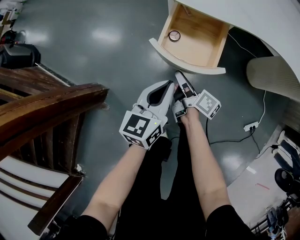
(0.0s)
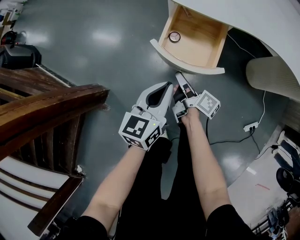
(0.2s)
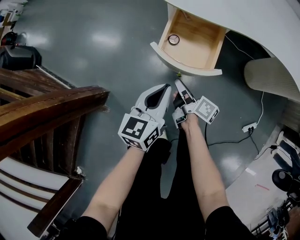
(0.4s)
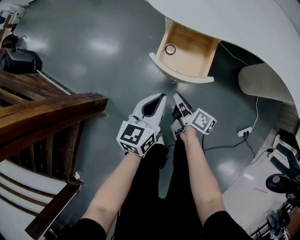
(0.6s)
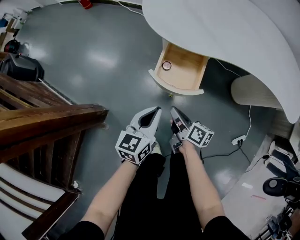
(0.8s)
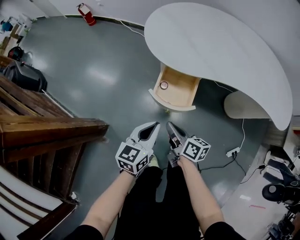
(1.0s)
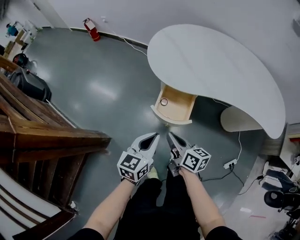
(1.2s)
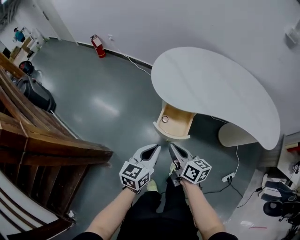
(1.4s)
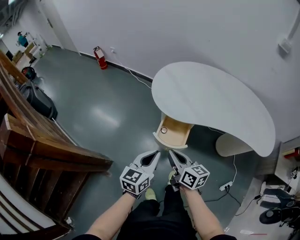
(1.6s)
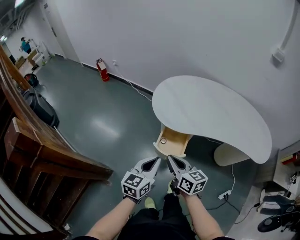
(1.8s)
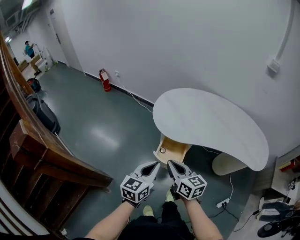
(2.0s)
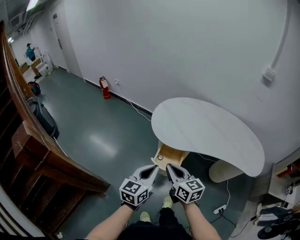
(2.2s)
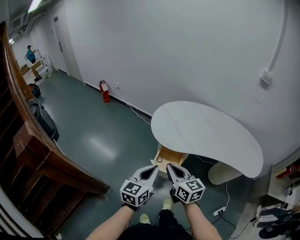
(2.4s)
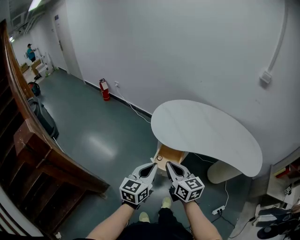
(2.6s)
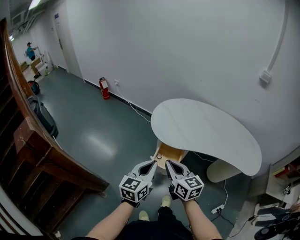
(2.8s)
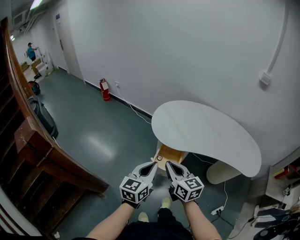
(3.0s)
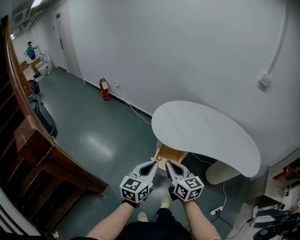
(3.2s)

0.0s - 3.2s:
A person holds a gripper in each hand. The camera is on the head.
0.0s - 1.6s: Both grippers move upward, approximately 30 cm. The right gripper rotates around the line of its fingers by about 40 degrees, counterclockwise from behind, and closes.
1.6s - 3.2s: Both grippers travel together upward, approximately 15 cm. The right gripper changes its angle by roughly 20 degrees.

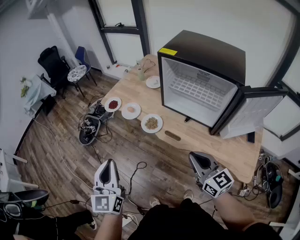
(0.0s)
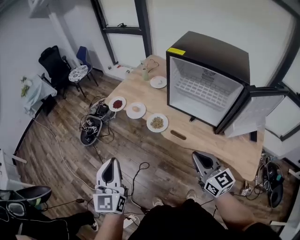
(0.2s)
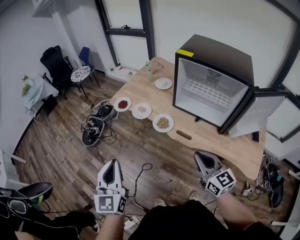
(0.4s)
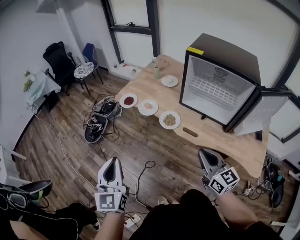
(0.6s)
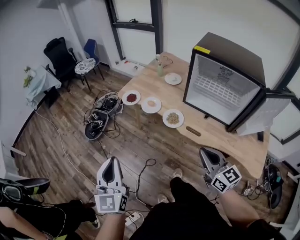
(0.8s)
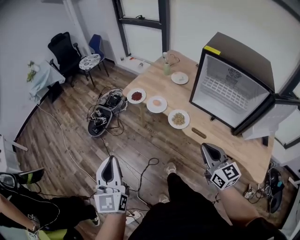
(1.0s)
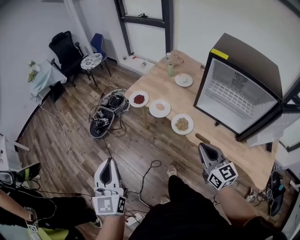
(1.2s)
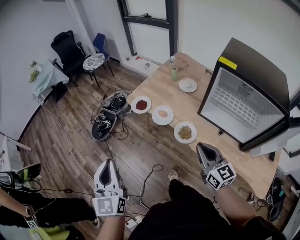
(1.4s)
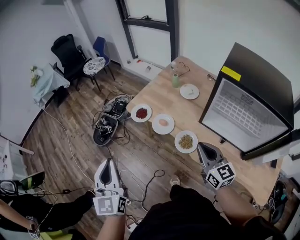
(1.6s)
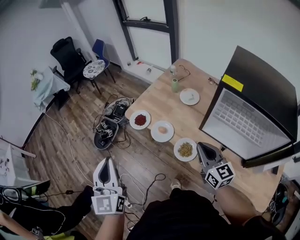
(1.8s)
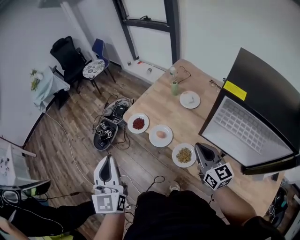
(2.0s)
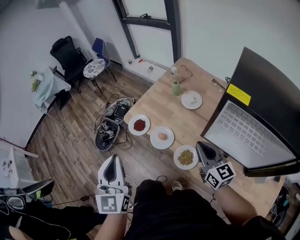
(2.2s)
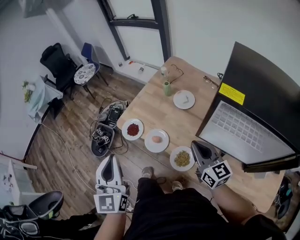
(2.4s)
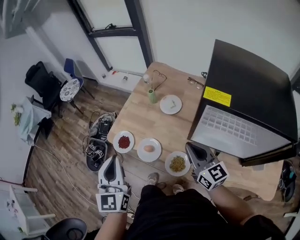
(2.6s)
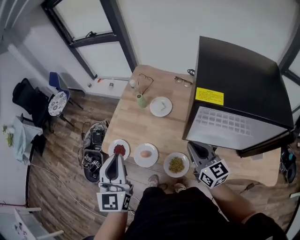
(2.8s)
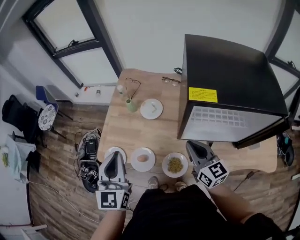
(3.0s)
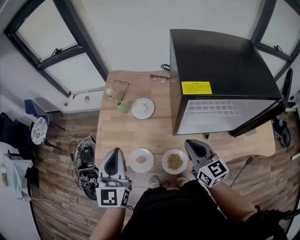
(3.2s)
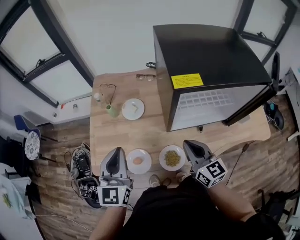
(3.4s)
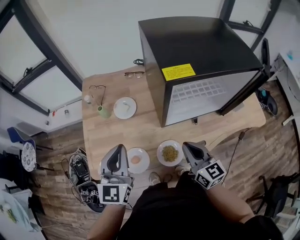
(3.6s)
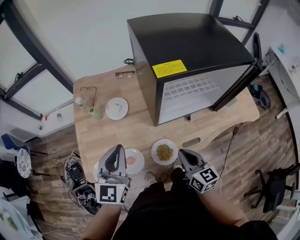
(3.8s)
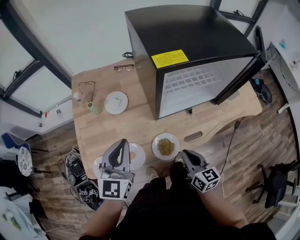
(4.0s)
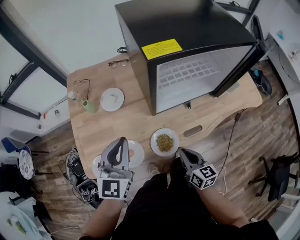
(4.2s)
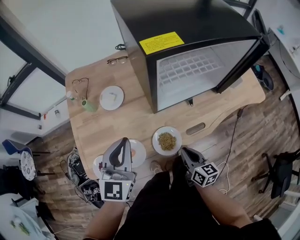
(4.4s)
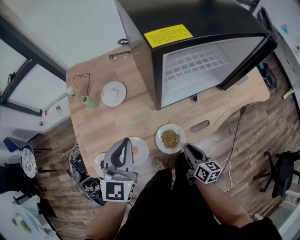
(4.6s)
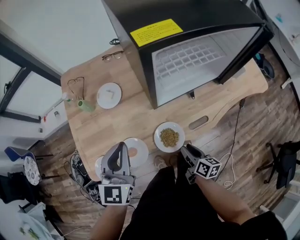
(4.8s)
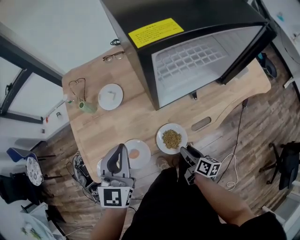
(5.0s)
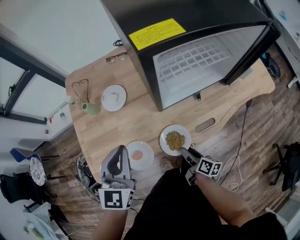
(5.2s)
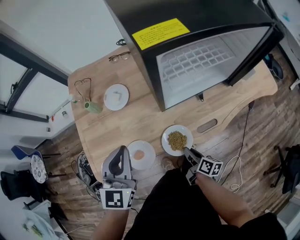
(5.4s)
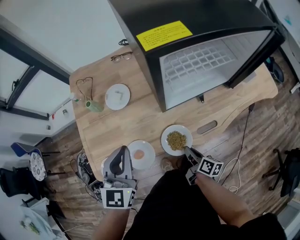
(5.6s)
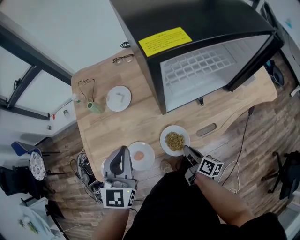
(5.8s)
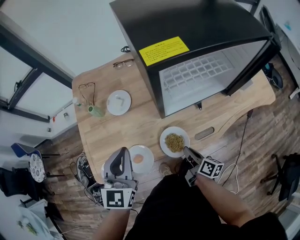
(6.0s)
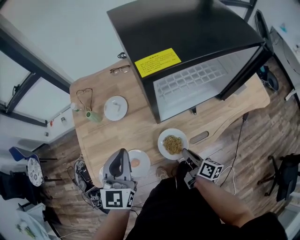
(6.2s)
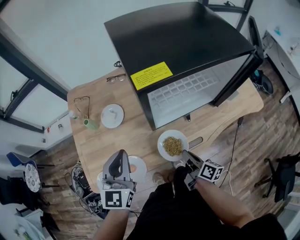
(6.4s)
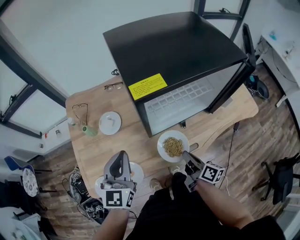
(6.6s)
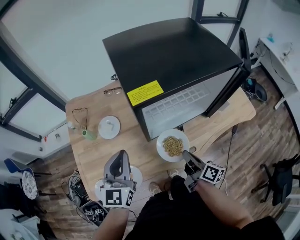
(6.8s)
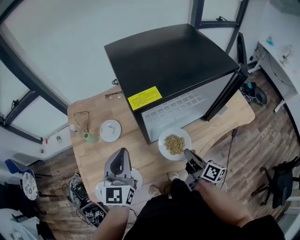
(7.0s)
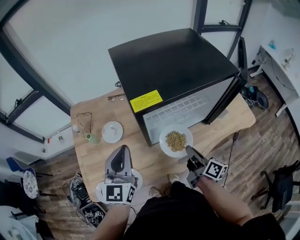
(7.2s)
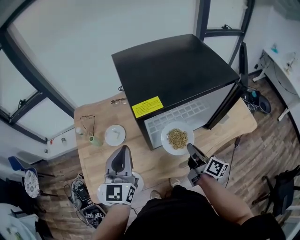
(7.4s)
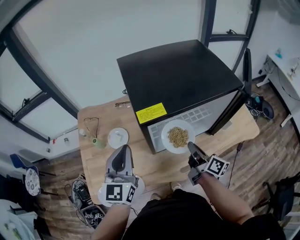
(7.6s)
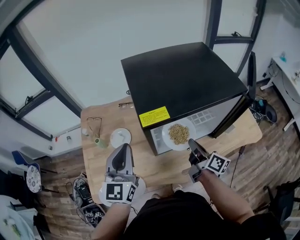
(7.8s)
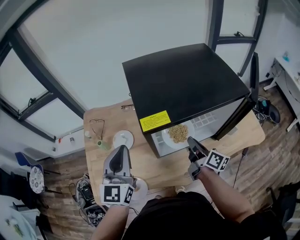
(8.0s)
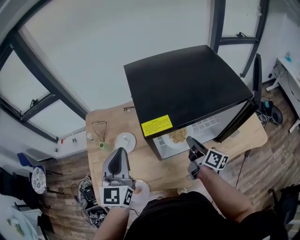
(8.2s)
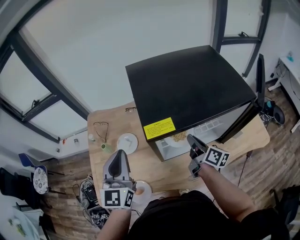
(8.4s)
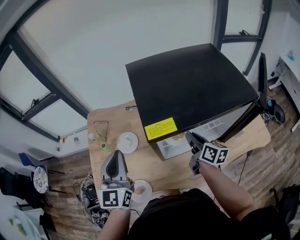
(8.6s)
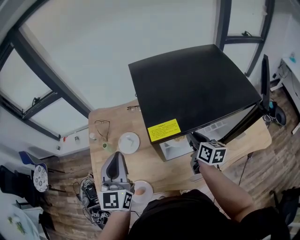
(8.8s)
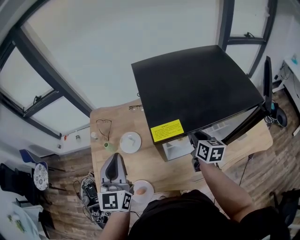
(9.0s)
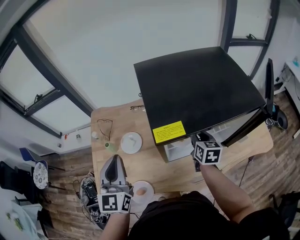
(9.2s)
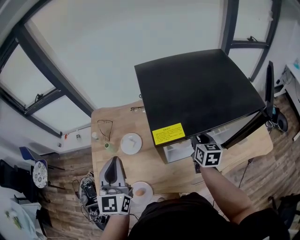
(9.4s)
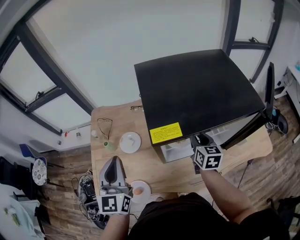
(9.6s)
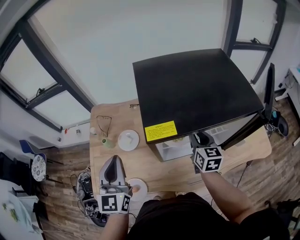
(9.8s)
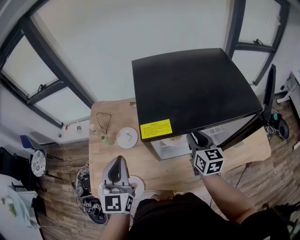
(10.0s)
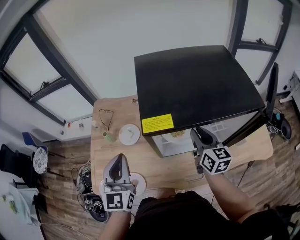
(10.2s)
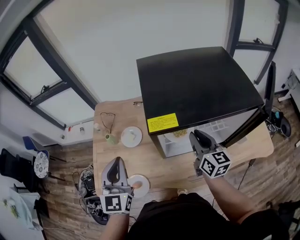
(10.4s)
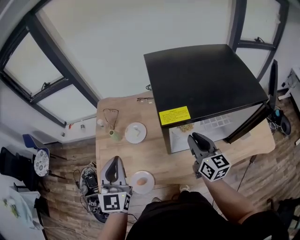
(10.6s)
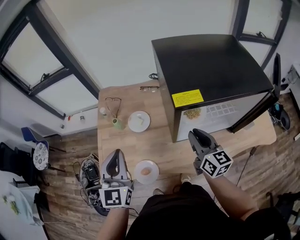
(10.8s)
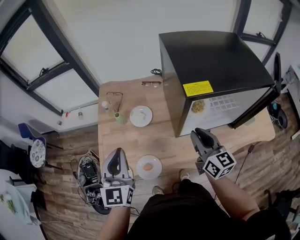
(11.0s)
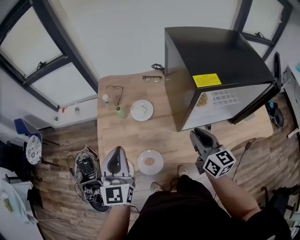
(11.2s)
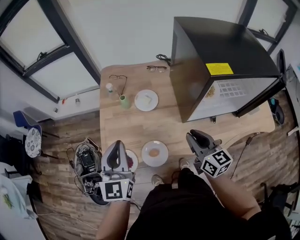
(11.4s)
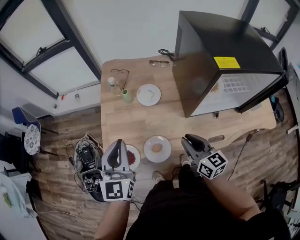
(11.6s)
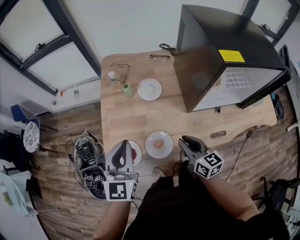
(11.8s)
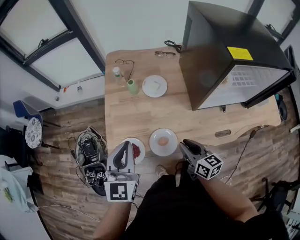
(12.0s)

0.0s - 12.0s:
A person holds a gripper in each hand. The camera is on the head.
0.0s - 1.6s: Both grippers travel together forward and to the left, about 25 cm.
1.6s - 3.0s: The right gripper ends up approximately 15 cm from where it was, and swivels approximately 30 degrees. Meanwhile the left gripper moves approximately 35 cm, and swivels roughly 40 degrees.
3.0s - 4.4s: The right gripper moves downward, some 20 cm, and swivels about 40 degrees, while the left gripper ends up some 15 cm from where it was, and rotates some 40 degrees.
4.4s - 6.0s: The right gripper changes its angle by approximately 30 degrees, and opens, then closes once more.
6.0s - 7.6s: The left gripper is displaced upward, forward and to the right by roughly 15 cm. The right gripper shifts roughly 25 cm upward, forward and to the right, and swivels approximately 20 degrees.
7.6s - 9.0s: The left gripper travels to the left by some 5 cm, while the right gripper goes roughly 15 cm forward, and turns by roughly 40 degrees.
9.0s - 10.4s: The right gripper moves upward, about 5 cm, and swivels approximately 20 degrees. The left gripper heads backward, covering approximately 5 cm.
10.4s - 12.0s: The right gripper heads to the left, downward and backward, covering approximately 35 cm, and rotates approximately 20 degrees. Meanwhile the left gripper heads to the left, downward and backward, covering some 20 cm.

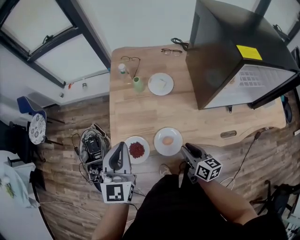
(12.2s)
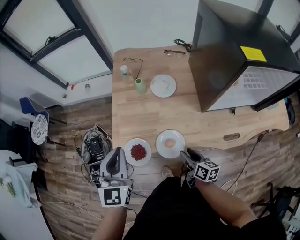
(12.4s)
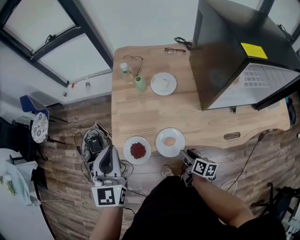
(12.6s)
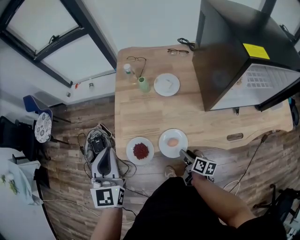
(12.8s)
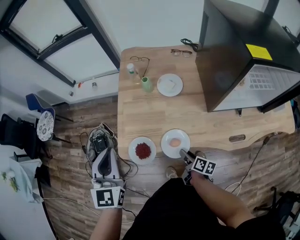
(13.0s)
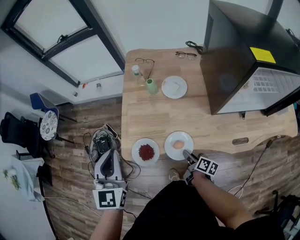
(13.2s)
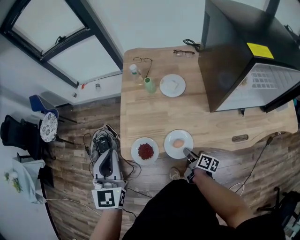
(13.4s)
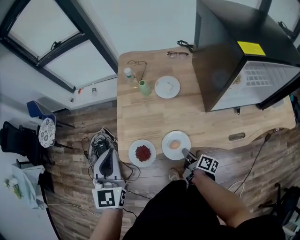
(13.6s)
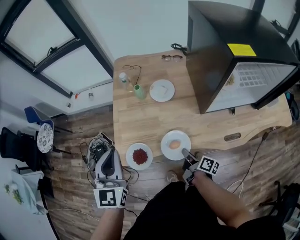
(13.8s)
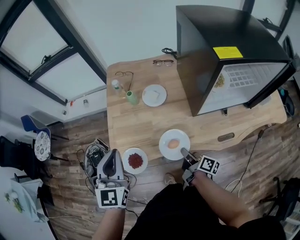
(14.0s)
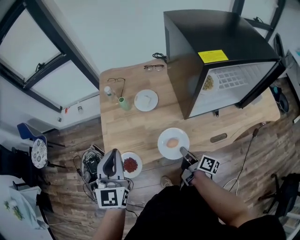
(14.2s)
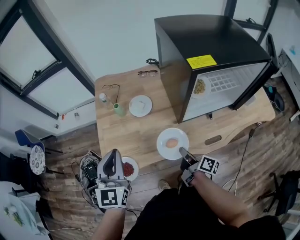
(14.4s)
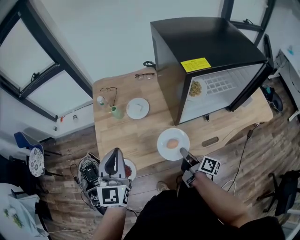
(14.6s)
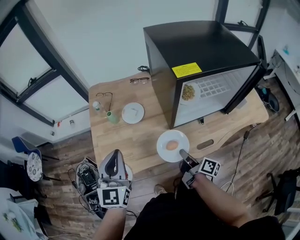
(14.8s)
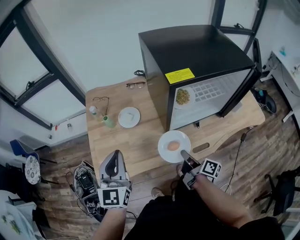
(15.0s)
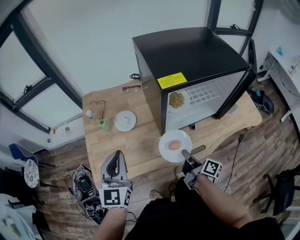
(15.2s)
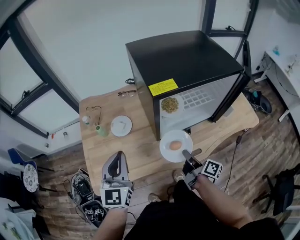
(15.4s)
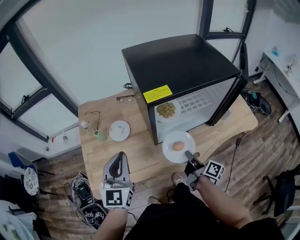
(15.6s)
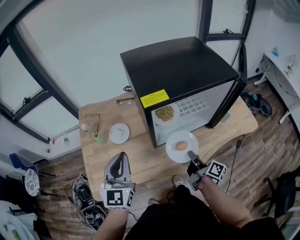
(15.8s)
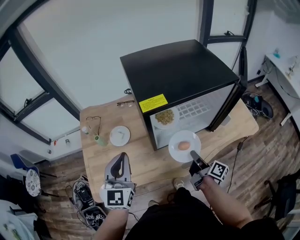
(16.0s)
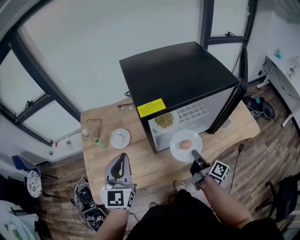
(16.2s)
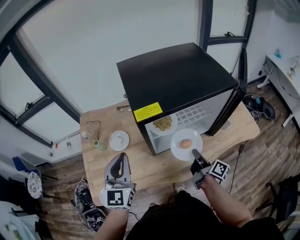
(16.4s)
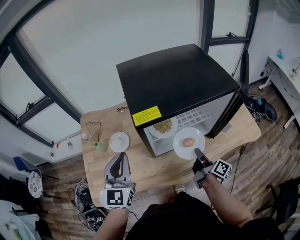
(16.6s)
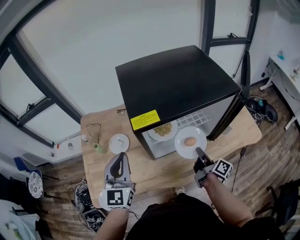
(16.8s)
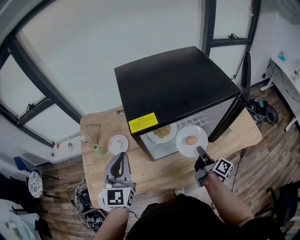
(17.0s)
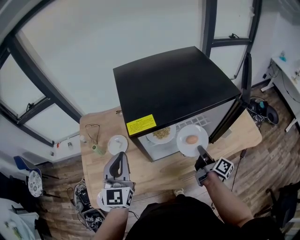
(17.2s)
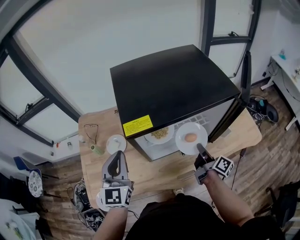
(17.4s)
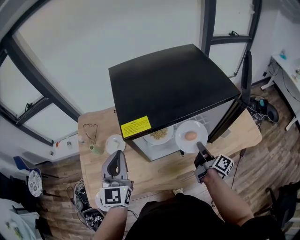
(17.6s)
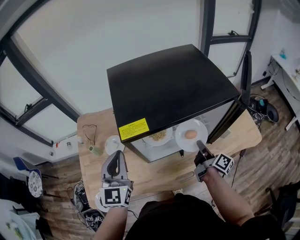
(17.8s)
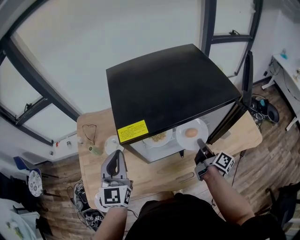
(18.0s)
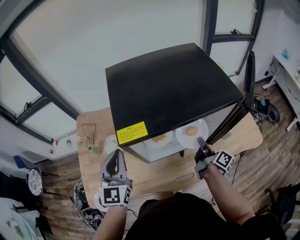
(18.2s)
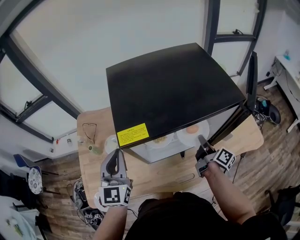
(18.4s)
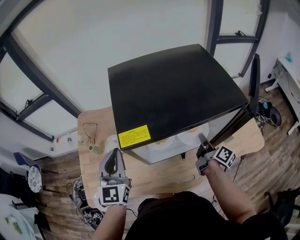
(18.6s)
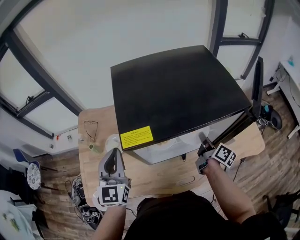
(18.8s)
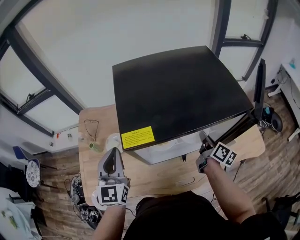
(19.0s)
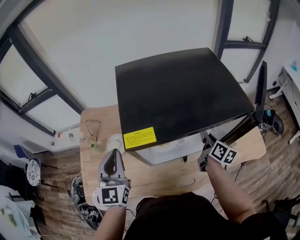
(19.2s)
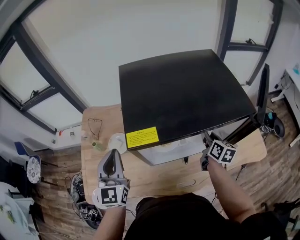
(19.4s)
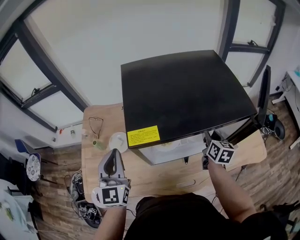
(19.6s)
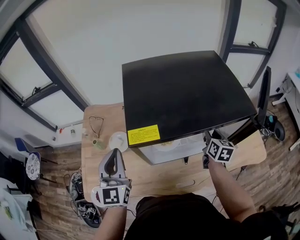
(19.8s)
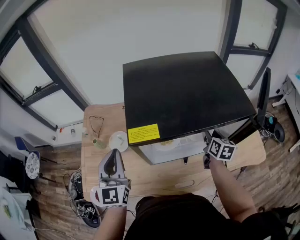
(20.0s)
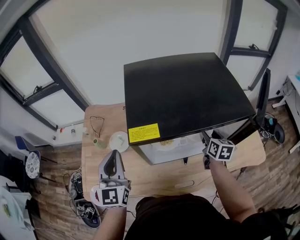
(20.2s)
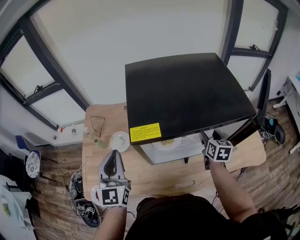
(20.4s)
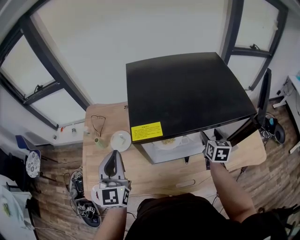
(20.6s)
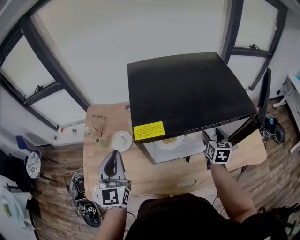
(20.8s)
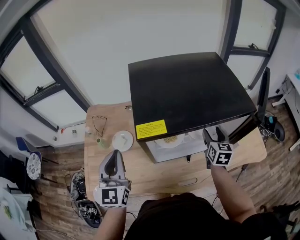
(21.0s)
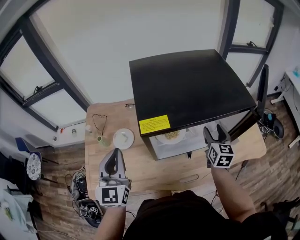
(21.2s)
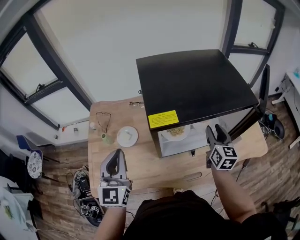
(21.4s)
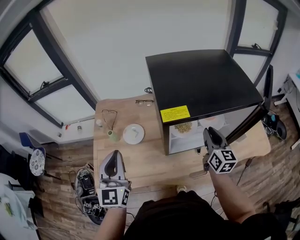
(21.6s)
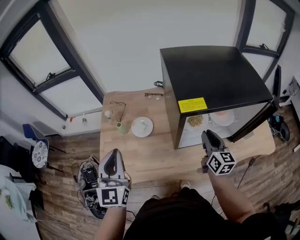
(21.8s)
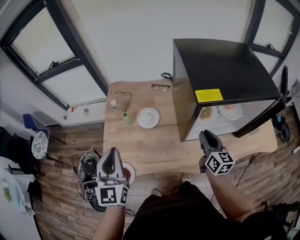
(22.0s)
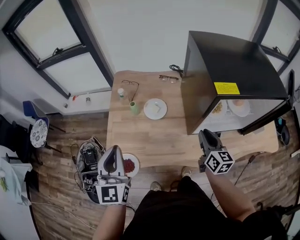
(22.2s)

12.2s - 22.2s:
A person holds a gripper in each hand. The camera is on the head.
12.2s - 13.6s: The left gripper moves approximately 5 cm; the right gripper travels downward by approximately 10 cm, twists about 40 degrees clockwise, seen from behind, and opens, then closes once more.
13.6s - 15.0s: The right gripper heads to the right and upward, covering about 25 cm. The left gripper travels to the right by some 15 cm.
15.0s - 16.4s: The grippers both shift to the right and forward by some 15 cm.
16.4s - 18.0s: The left gripper travels forward by approximately 5 cm. Meanwhile the right gripper goes roughly 10 cm forward and to the right.
18.0s - 19.4s: The right gripper moves forward, some 10 cm, and swivels roughly 40 degrees.
19.4s - 20.8s: The right gripper turns by approximately 30 degrees, and opens up.
20.8s - 22.2s: The grippers both shift to the left and backward by some 25 cm. The right gripper rotates approximately 30 degrees, and closes its fingers.
